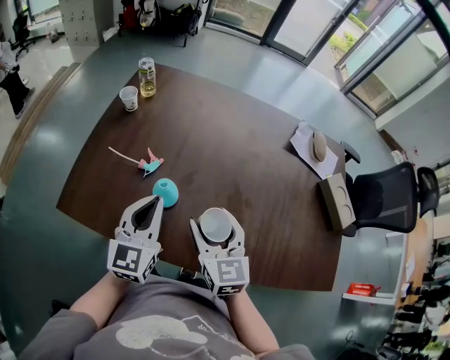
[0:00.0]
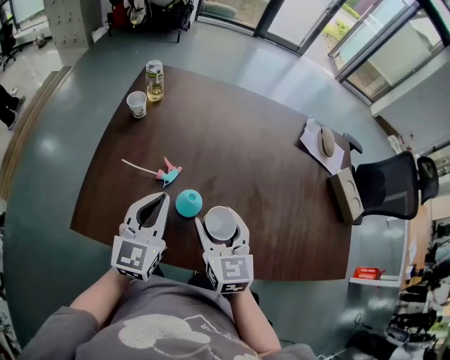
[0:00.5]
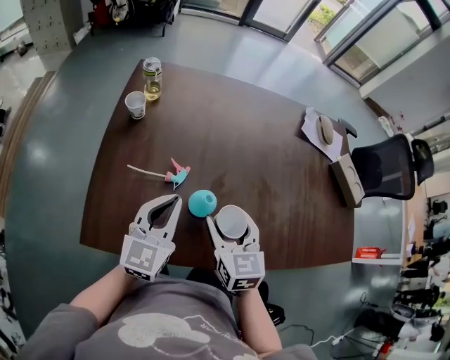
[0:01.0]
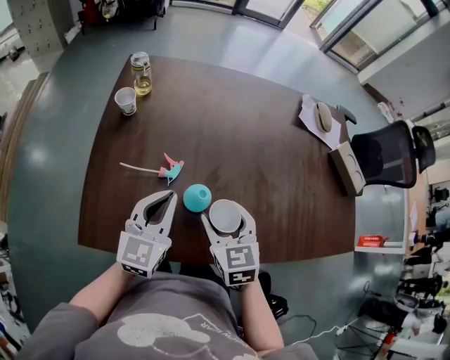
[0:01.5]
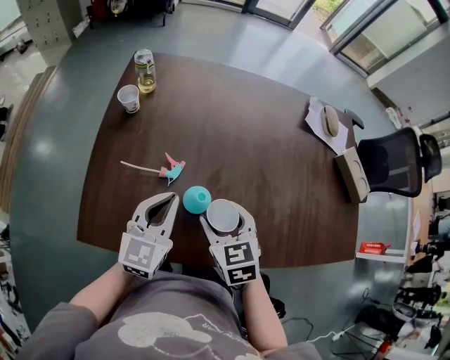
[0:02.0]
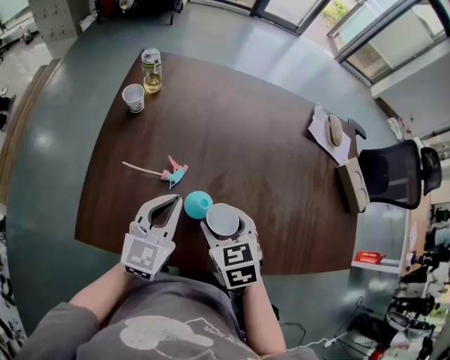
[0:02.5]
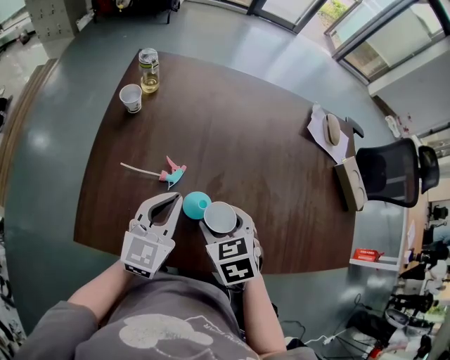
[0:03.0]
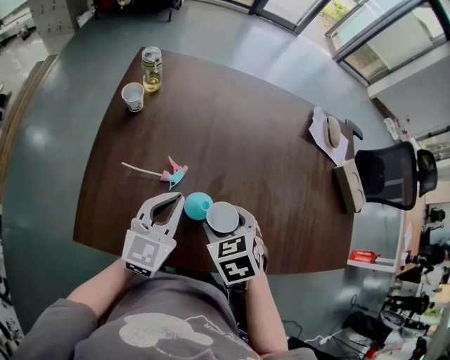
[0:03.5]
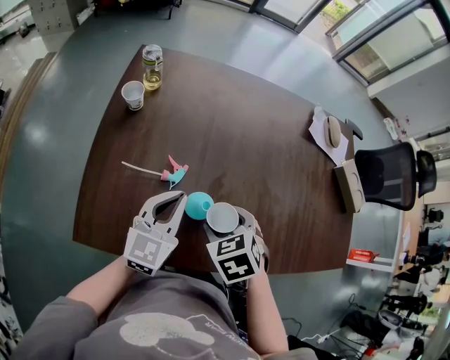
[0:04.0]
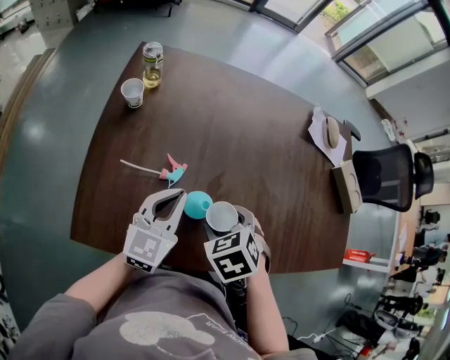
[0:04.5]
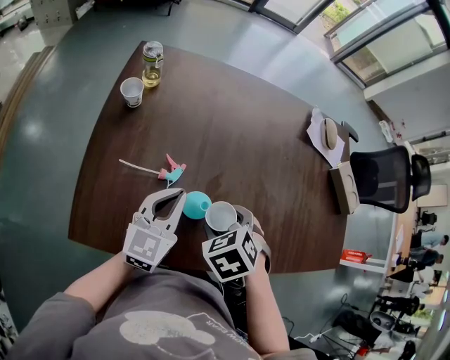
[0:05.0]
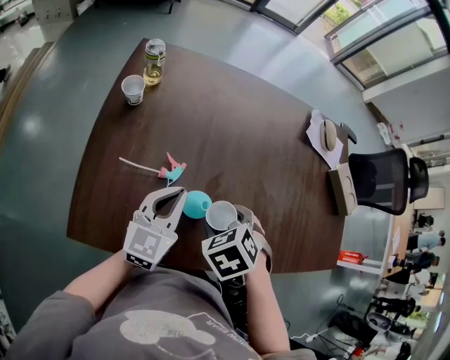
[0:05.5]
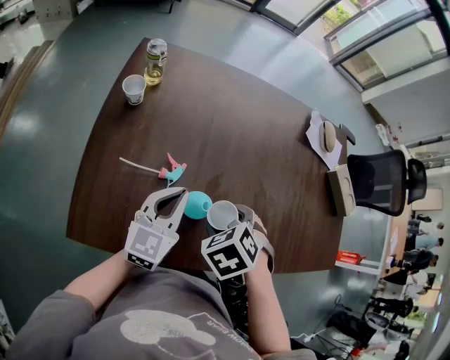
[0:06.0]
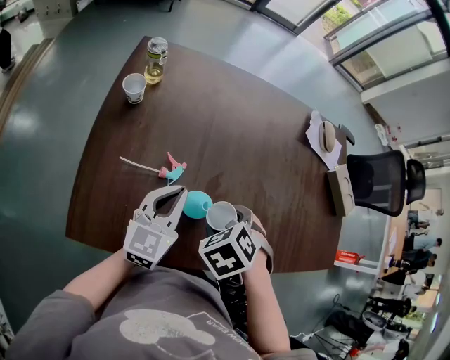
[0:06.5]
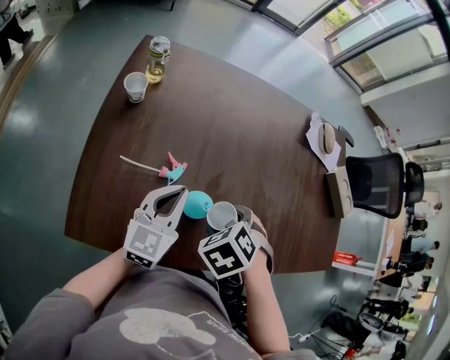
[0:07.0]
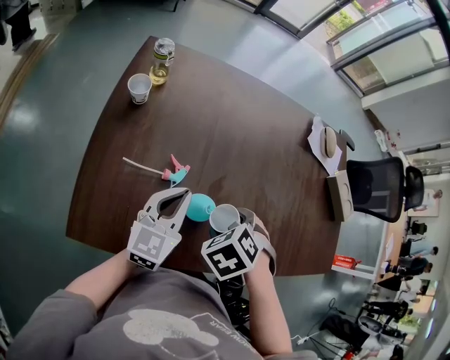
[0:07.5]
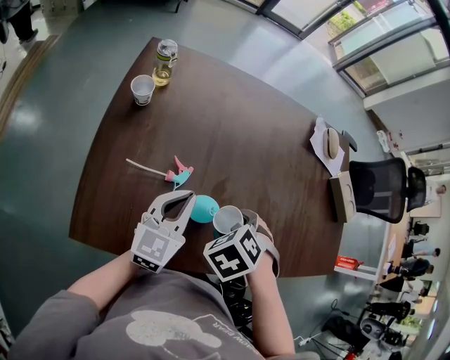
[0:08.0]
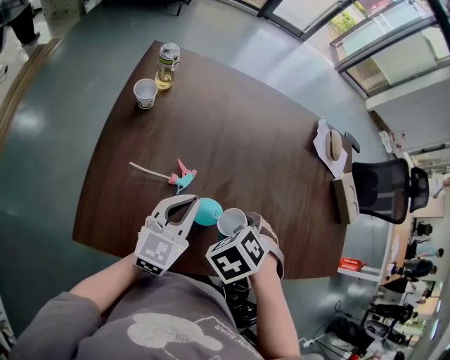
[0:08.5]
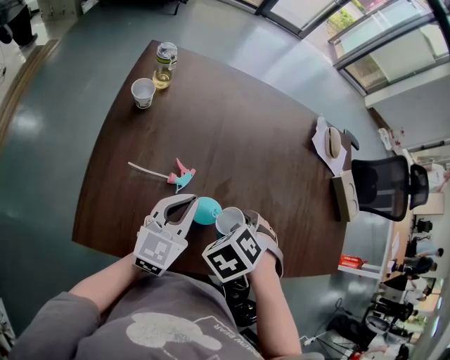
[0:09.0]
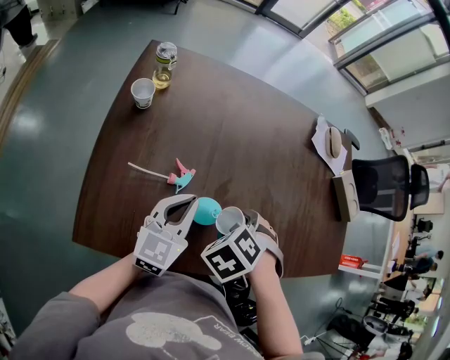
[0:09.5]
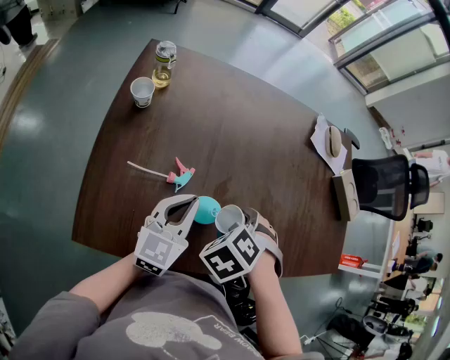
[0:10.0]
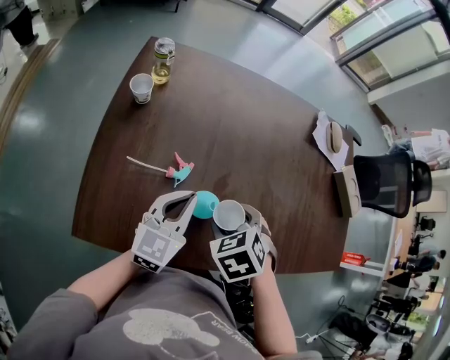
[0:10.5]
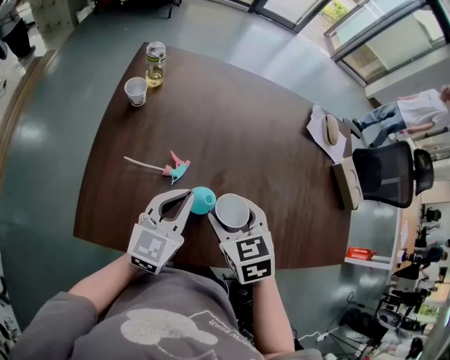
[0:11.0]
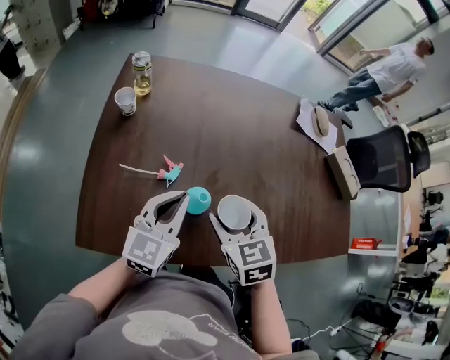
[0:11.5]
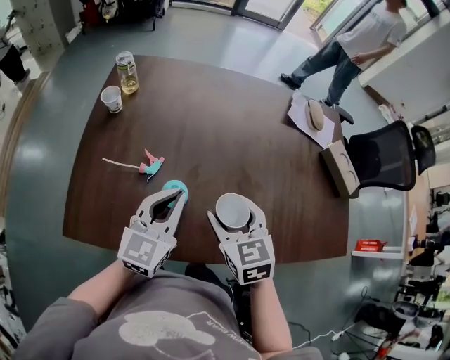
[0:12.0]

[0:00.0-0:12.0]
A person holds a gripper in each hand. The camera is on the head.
0:00.0 to 0:02.0: The left gripper heads to the left, covering some 5 cm; the right gripper heads to the left and downward, covering about 10 cm, and changes its angle by roughly 20 degrees.
0:02.0 to 0:04.0: The right gripper changes its angle by approximately 20 degrees.
0:04.0 to 0:06.0: There are only small adjustments of the grippers.
0:06.0 to 0:10.0: The grippers stay close to where they were, moving slightly.
0:10.0 to 0:12.0: The left gripper shifts by about 10 cm, while the right gripper shifts by roughly 10 cm, and points its fingers about 40 degrees further upward.

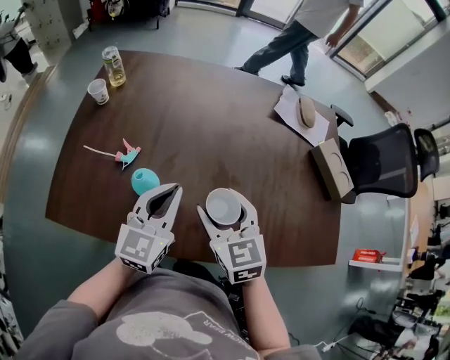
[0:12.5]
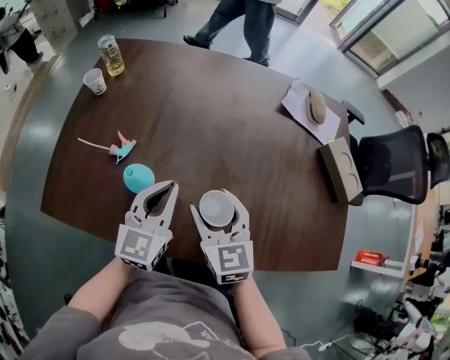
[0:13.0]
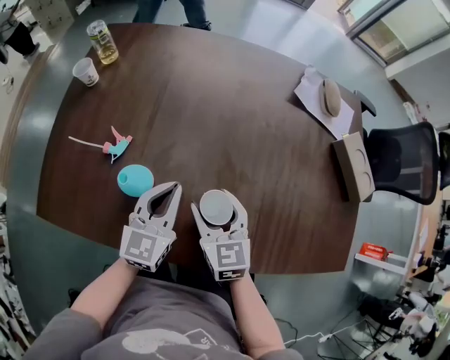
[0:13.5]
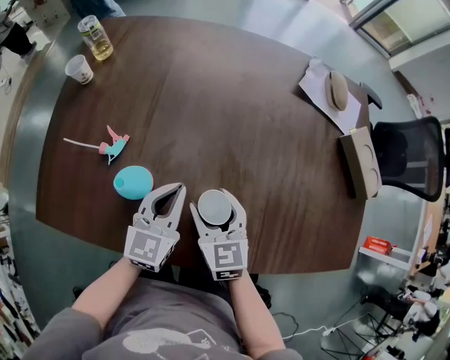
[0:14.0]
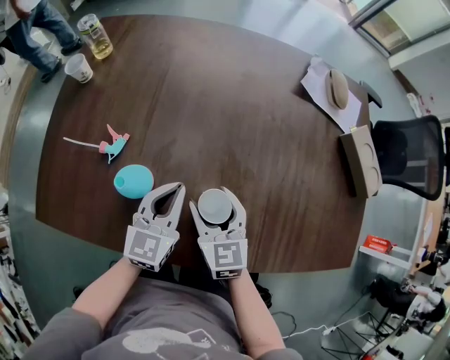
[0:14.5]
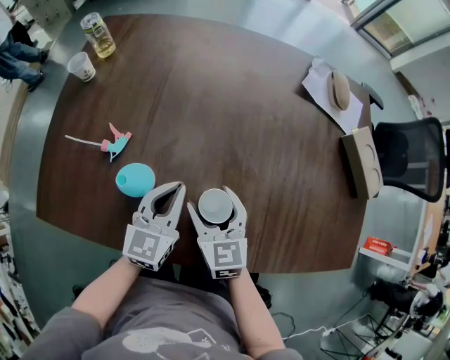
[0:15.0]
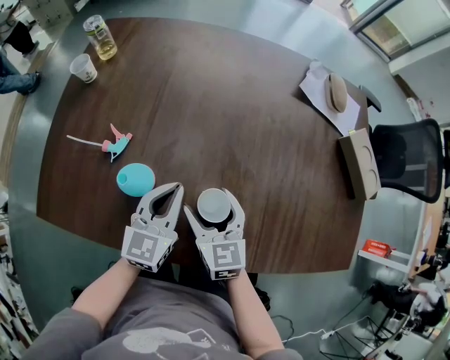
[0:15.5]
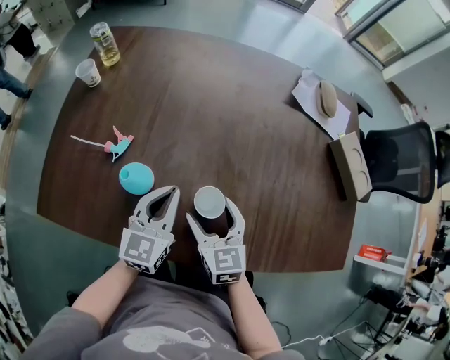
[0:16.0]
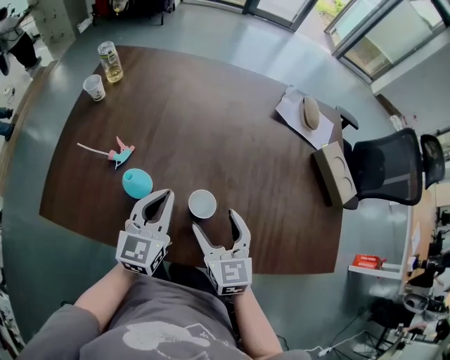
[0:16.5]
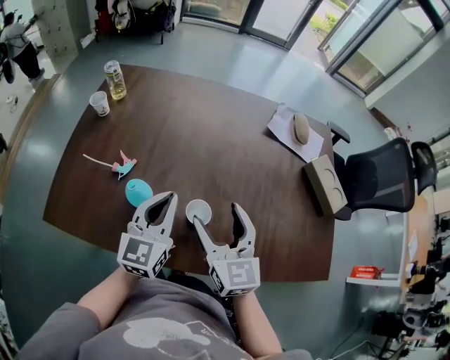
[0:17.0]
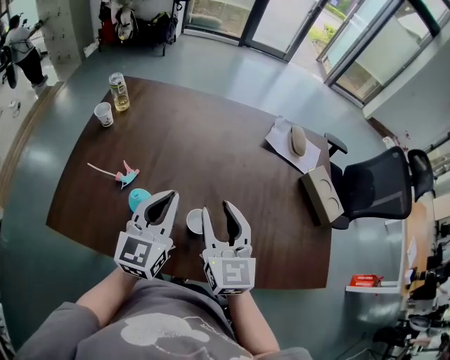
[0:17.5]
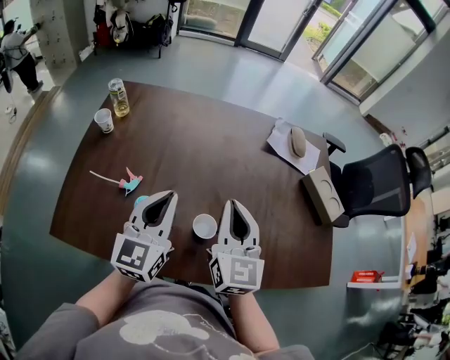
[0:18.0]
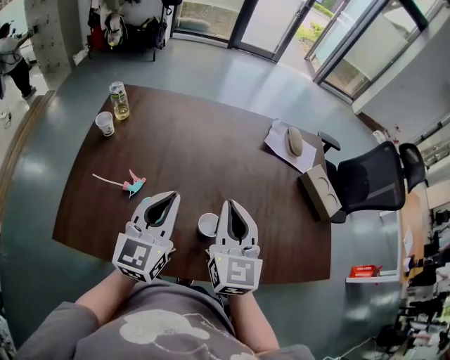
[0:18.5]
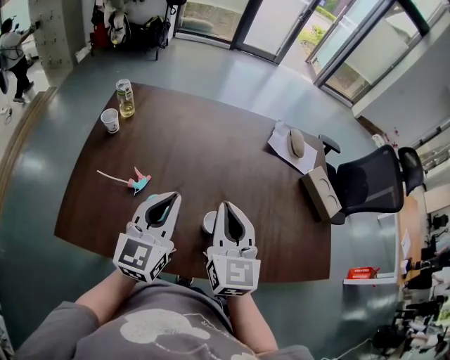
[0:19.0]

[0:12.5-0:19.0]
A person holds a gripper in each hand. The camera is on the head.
0:12.5 to 0:14.5: The grippers both shift downward by approximately 15 cm.
0:14.5 to 0:17.0: The grippers both shift upward by some 15 cm.
0:17.0 to 0:19.0: The grippers both shift upward and to the left by some 10 cm. The right gripper closes up.

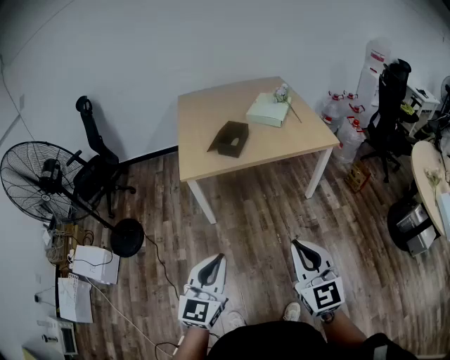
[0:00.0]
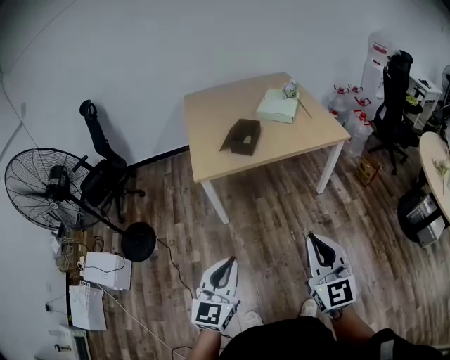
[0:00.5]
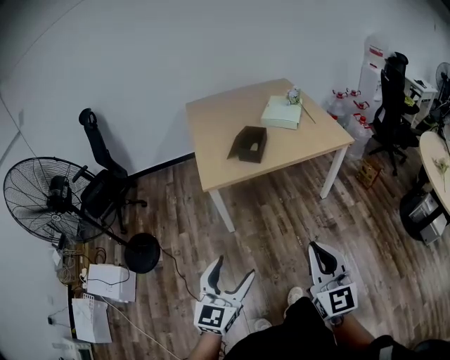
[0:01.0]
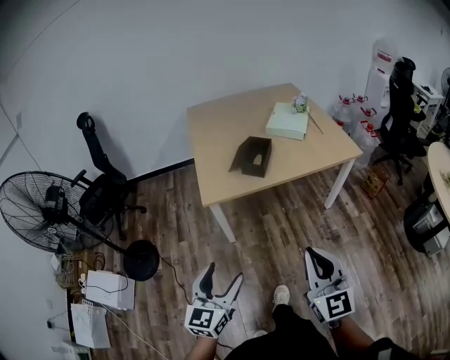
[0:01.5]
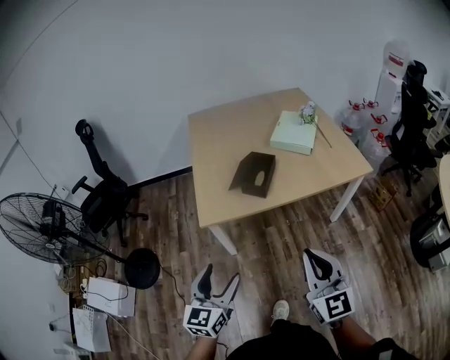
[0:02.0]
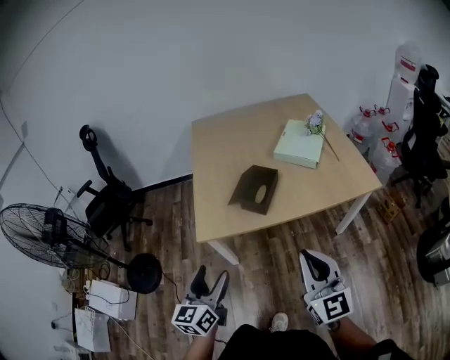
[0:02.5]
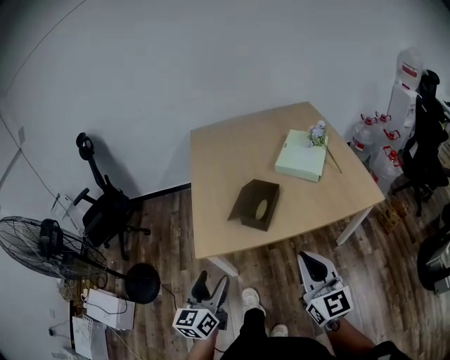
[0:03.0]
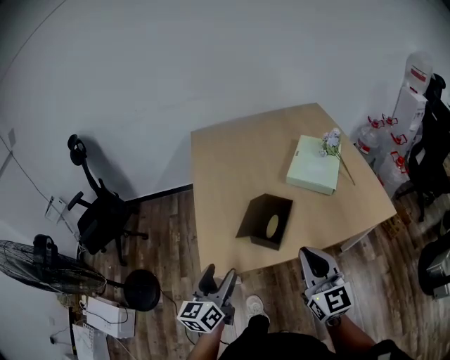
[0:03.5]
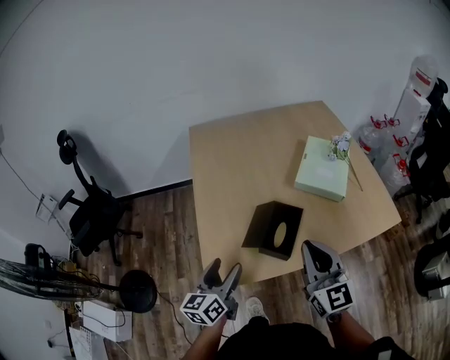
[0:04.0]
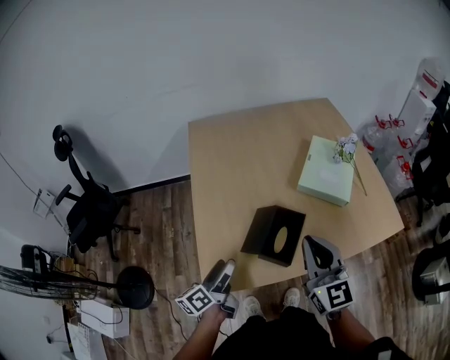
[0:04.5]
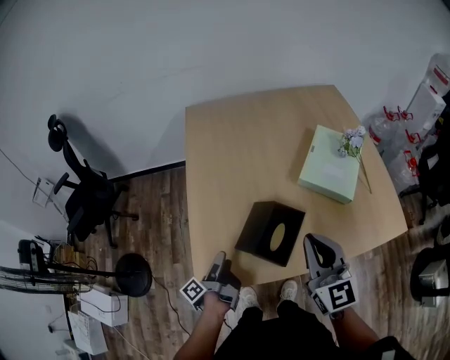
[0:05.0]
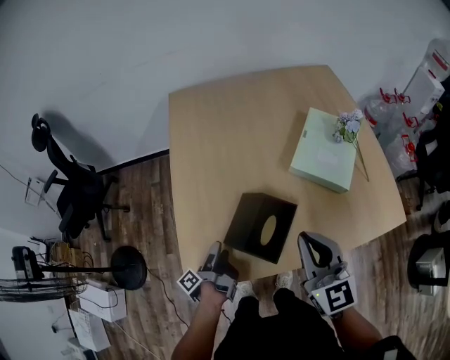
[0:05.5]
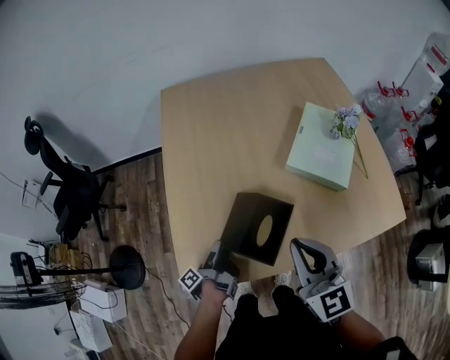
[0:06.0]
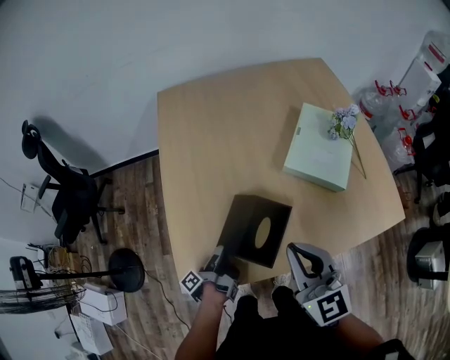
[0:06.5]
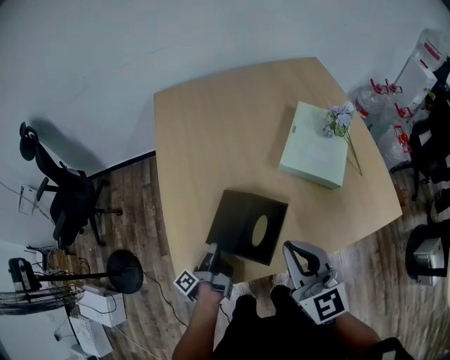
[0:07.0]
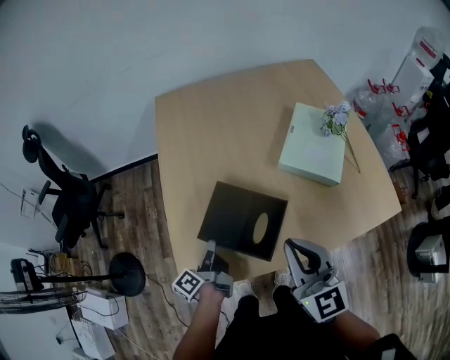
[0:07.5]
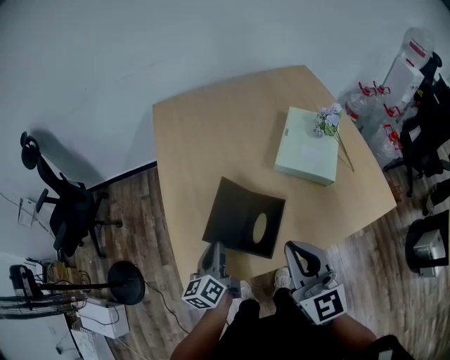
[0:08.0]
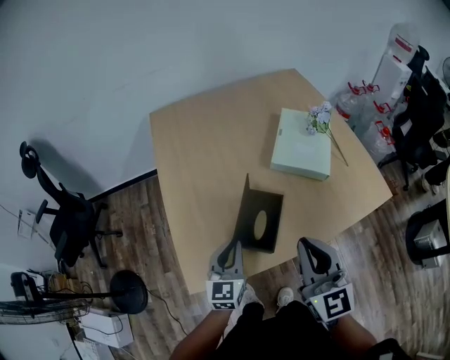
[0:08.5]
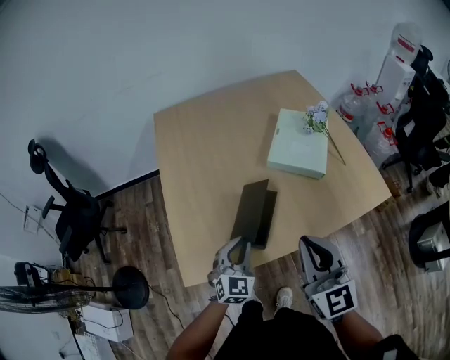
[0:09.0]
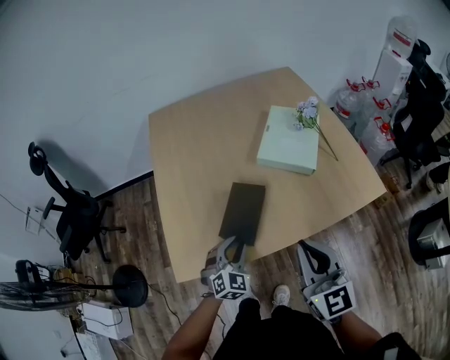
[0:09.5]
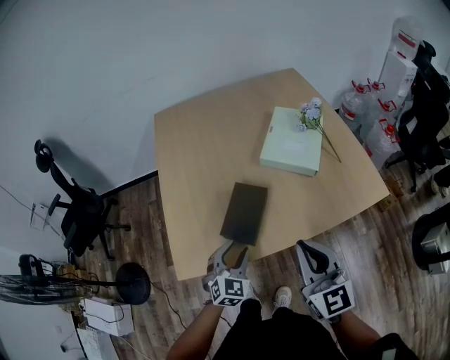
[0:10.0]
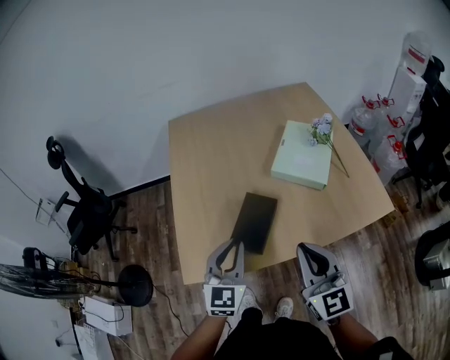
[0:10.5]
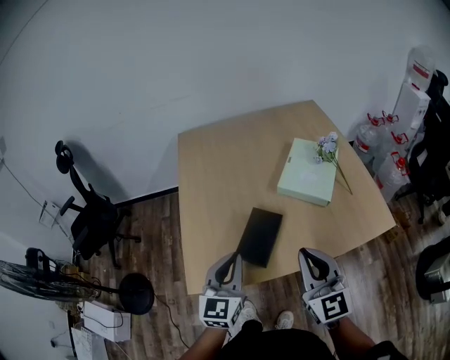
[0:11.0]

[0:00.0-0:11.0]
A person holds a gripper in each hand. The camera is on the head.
0:00.0 to 0:02.0: The left gripper goes about 25 cm forward and to the left, and opens up, while the right gripper heads forward, covering roughly 20 cm.
0:02.0 to 0:03.5: The grippers both shift forward by approximately 25 cm.
0:03.5 to 0:05.5: The left gripper is displaced downward and forward by some 25 cm, and rotates around the line of its fingers by approximately 80 degrees, counterclockwise from behind; the right gripper heads forward, covering about 15 cm.
0:05.5 to 0:07.5: The left gripper turns by about 30 degrees, and closes its fingers.
0:07.5 to 0:09.0: The right gripper goes approximately 10 cm backward. The left gripper shifts about 15 cm to the right and backward, and rolls clockwise, seen from behind, by roughly 100 degrees.
0:09.0 to 0:11.0: The left gripper travels upward by approximately 15 cm, turns by approximately 30 degrees, and opens, then closes once more.
